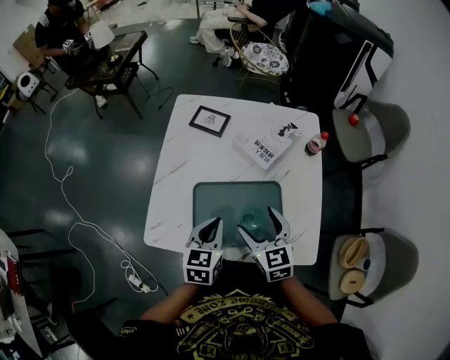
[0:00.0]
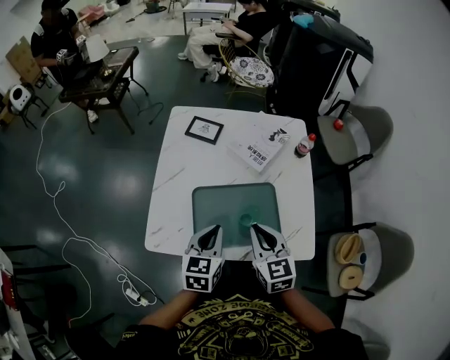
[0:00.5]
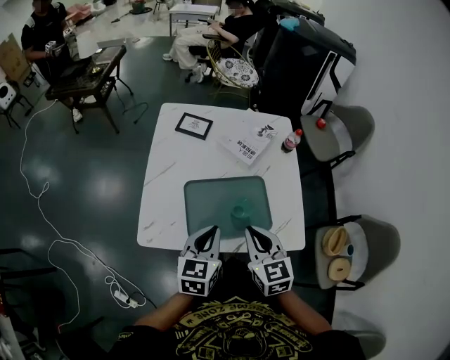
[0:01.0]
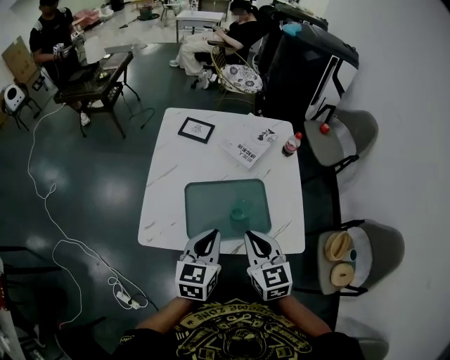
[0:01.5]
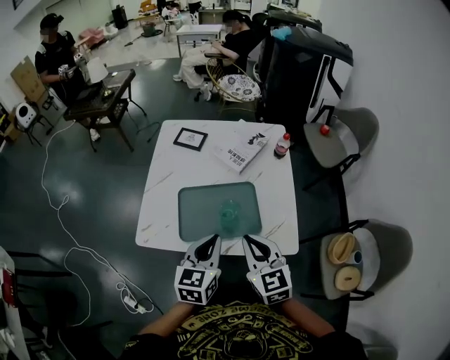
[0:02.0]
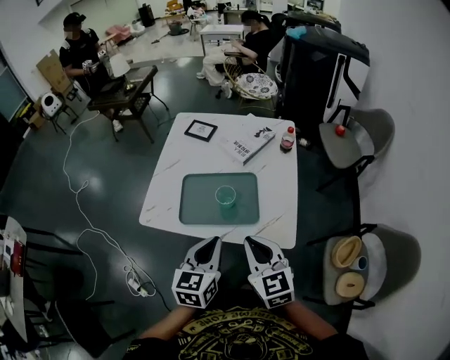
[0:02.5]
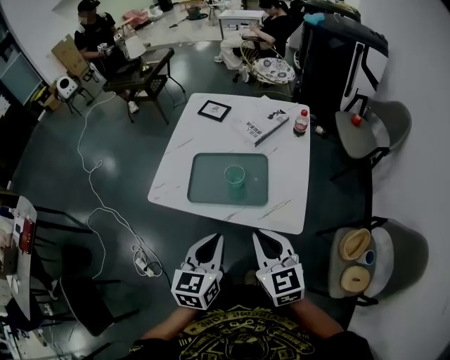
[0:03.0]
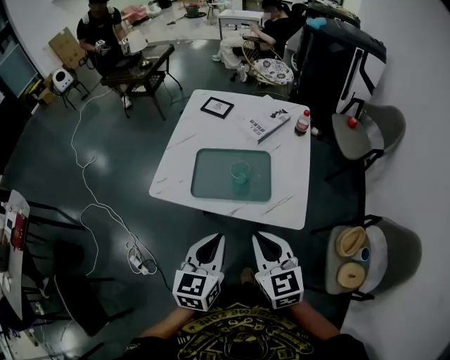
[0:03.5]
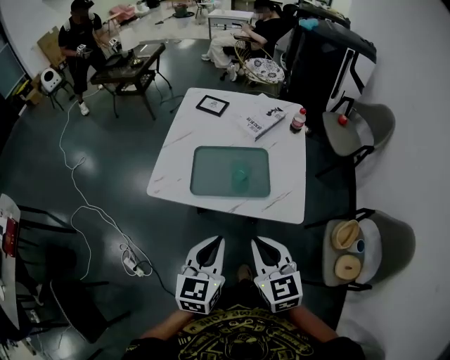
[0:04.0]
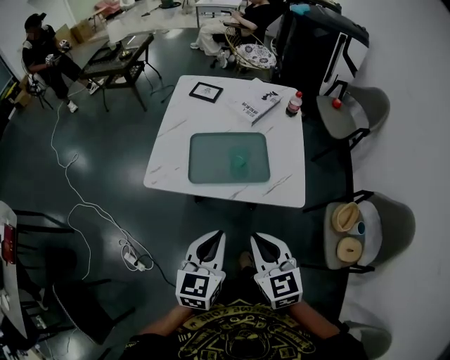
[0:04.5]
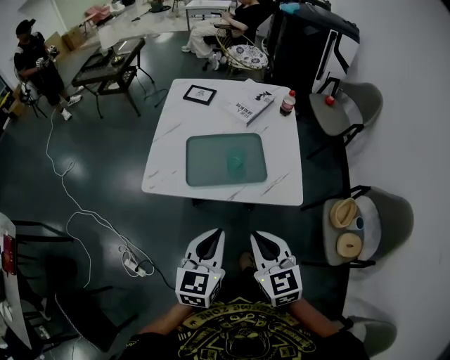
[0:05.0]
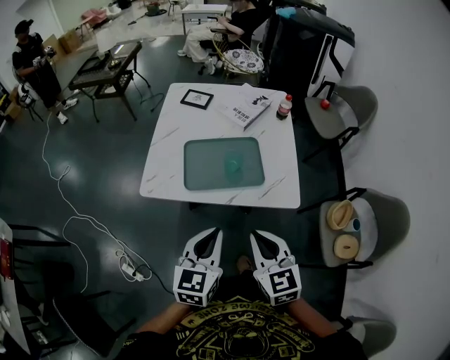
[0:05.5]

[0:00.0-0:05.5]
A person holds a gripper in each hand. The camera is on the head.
0:00.0 to 0:02.0: The left gripper moves backward, upward and to the right, some 15 cm. Meanwhile the right gripper moves backward and upward, roughly 15 cm, and closes up.
0:02.0 to 0:03.5: Both grippers move backward, some 15 cm.
0:03.5 to 0:05.5: The left gripper moves approximately 5 cm, while the right gripper ends up roughly 5 cm from where it was.

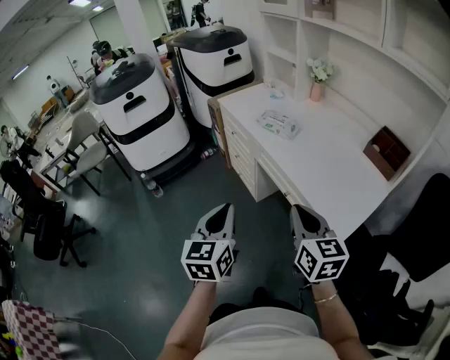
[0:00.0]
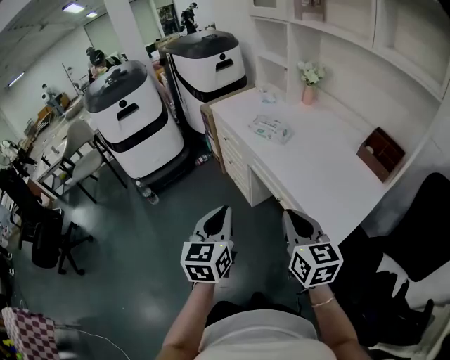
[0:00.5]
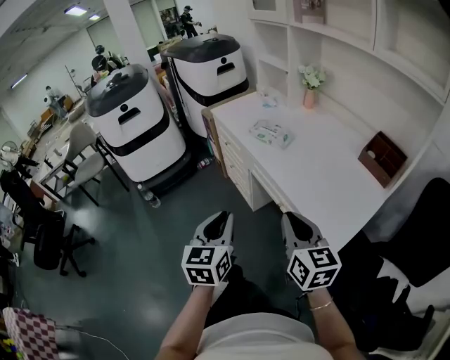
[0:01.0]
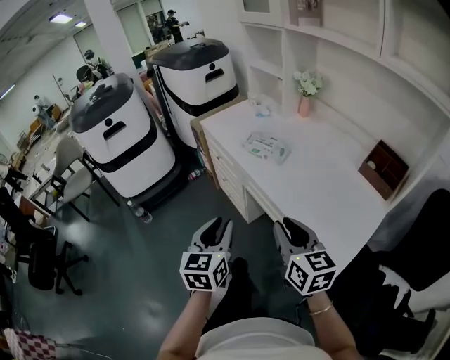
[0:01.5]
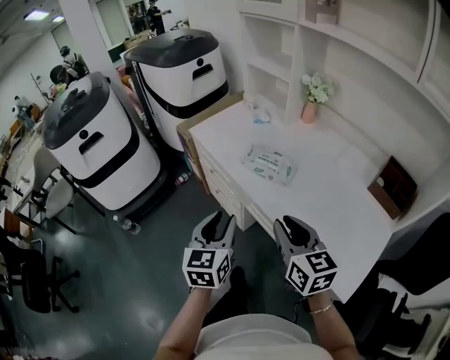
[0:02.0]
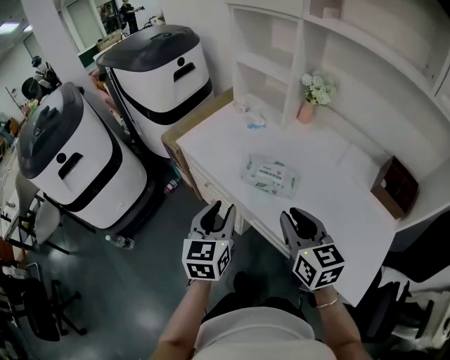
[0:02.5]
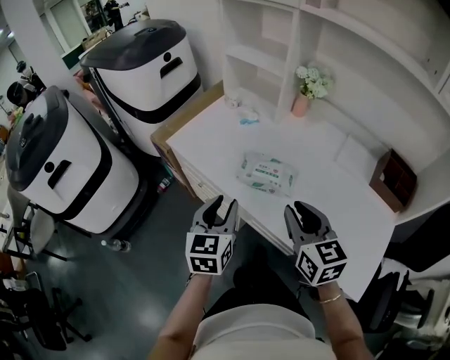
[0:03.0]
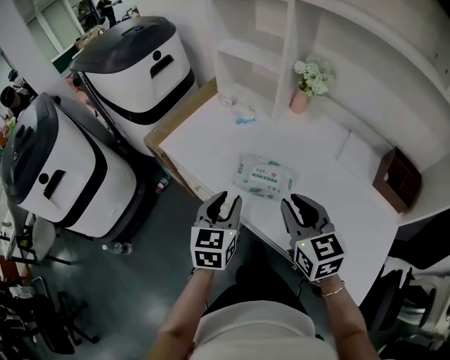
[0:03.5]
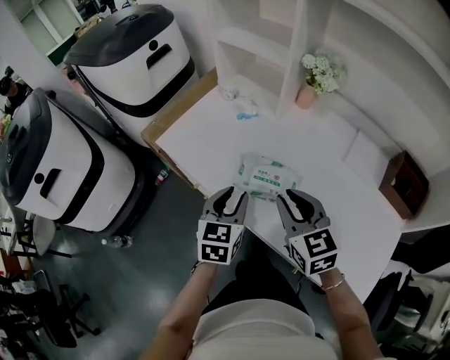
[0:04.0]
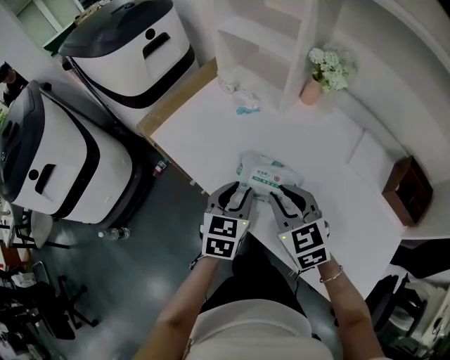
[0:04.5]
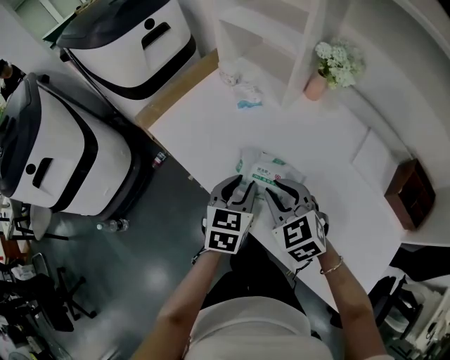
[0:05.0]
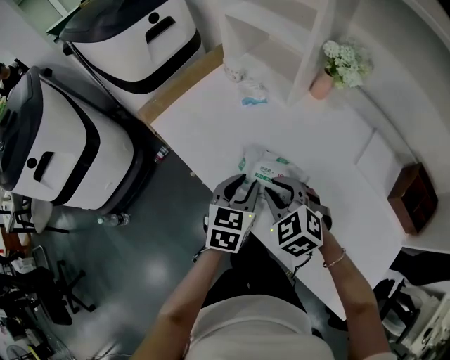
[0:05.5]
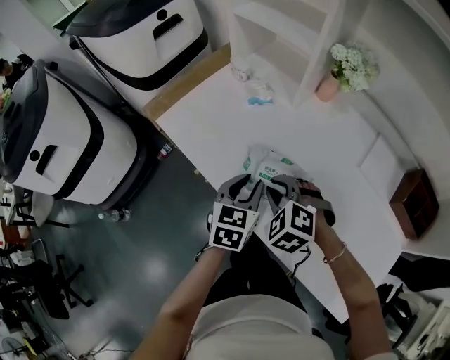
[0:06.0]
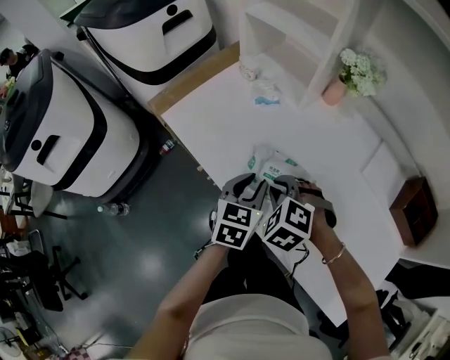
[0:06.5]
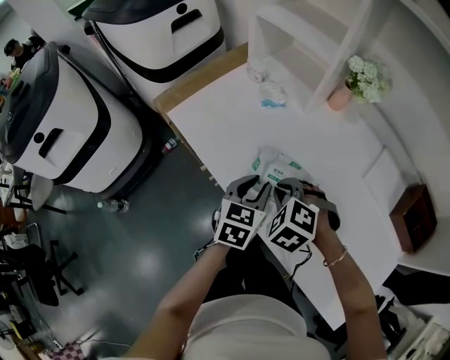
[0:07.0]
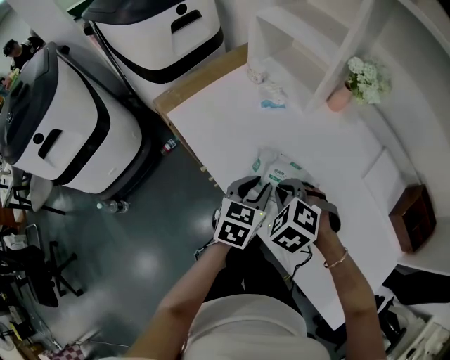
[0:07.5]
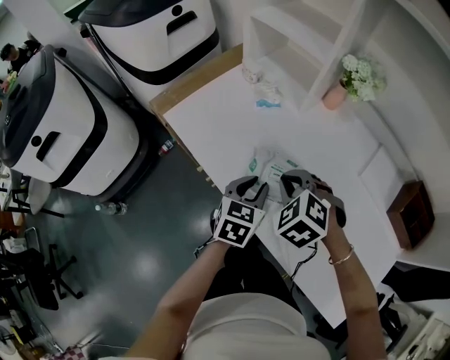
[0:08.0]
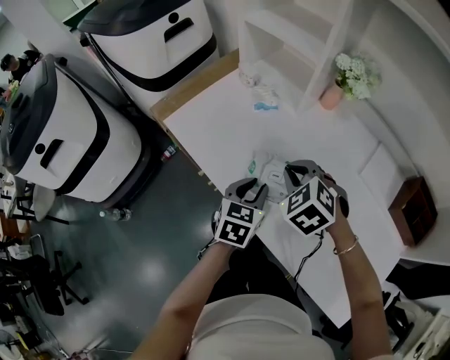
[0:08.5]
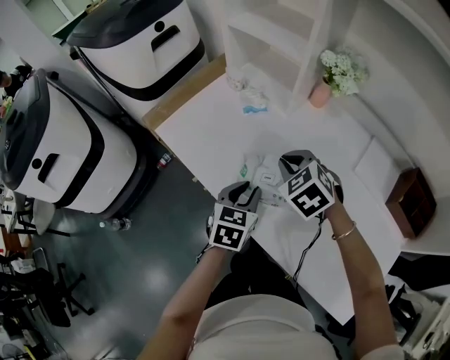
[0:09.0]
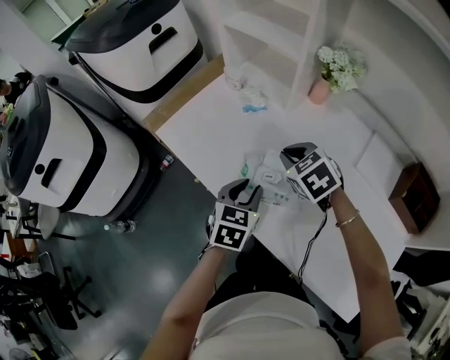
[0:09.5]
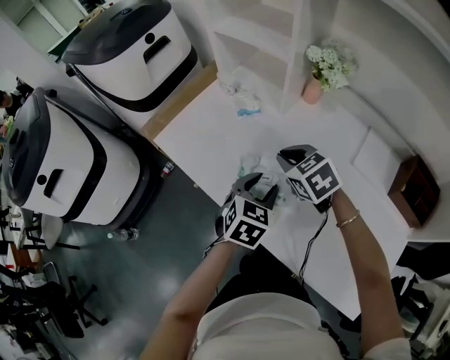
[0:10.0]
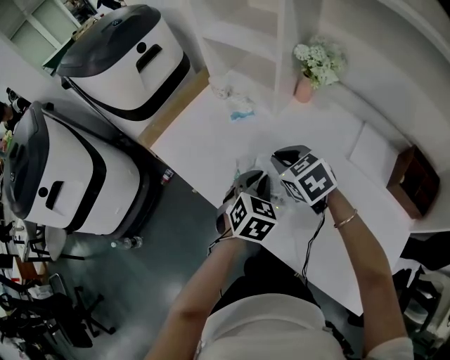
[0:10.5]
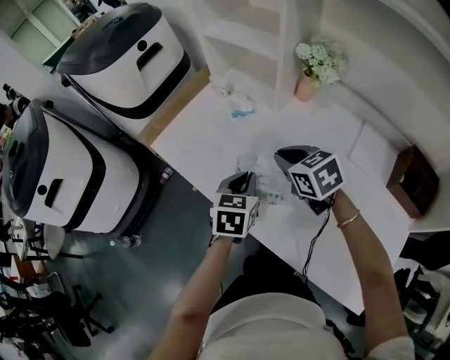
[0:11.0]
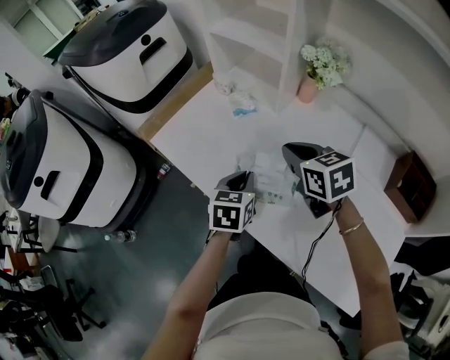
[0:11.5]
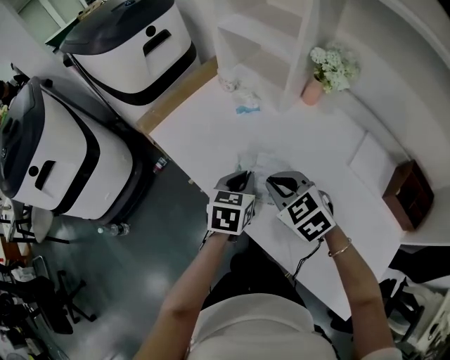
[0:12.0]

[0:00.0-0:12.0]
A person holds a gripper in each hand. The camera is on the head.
0:00.0 to 0:02.0: Both grippers move forward, approximately 25 cm. The left gripper opens up.
0:02.0 to 0:04.0: The grippers both shift forward by about 20 cm.
0:04.0 to 0:06.0: The right gripper shifts about 10 cm downward, and rotates around the line of its fingers by about 40 degrees, counterclockwise from behind. The left gripper changes place by some 5 cm.
0:06.0 to 0:08.0: The grippers make only small movements.
0:08.0 to 0:10.0: The left gripper moves to the right, some 5 cm, while the right gripper is displaced forward by about 5 cm, and turns by some 30 degrees.
0:10.0 to 0:12.0: The right gripper goes about 5 cm backward; the left gripper ends up approximately 5 cm from where it was, swivels some 20 degrees, and closes.

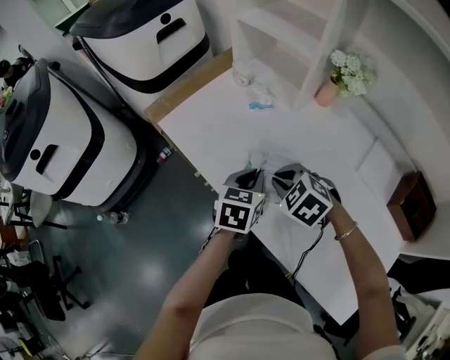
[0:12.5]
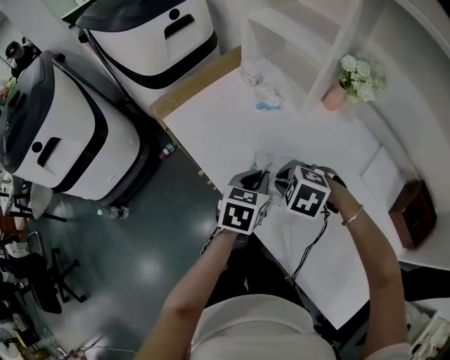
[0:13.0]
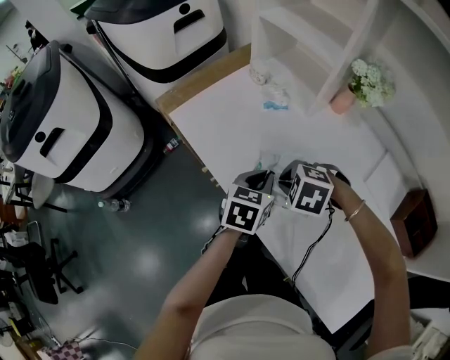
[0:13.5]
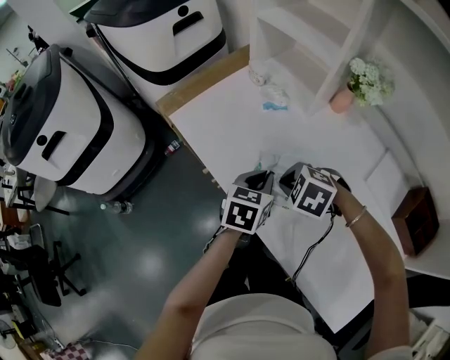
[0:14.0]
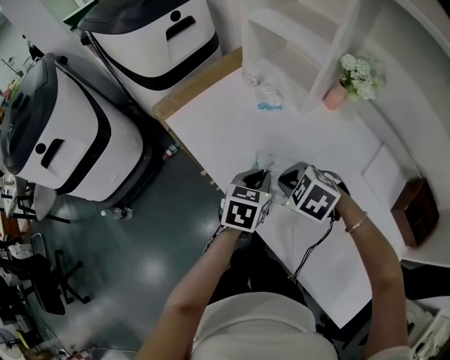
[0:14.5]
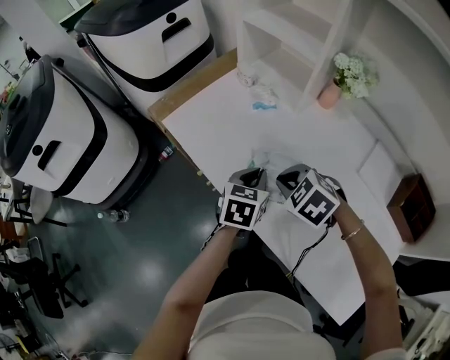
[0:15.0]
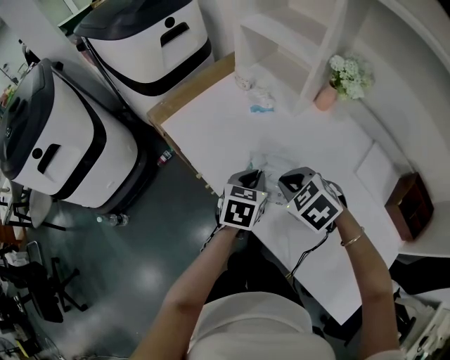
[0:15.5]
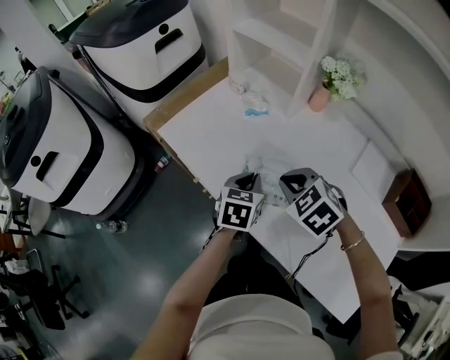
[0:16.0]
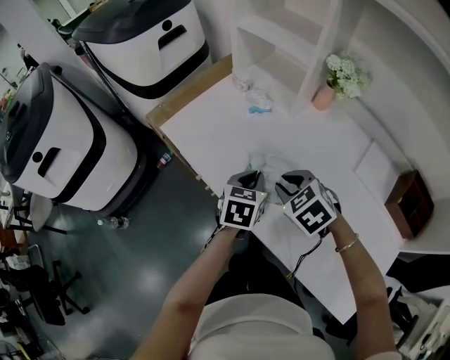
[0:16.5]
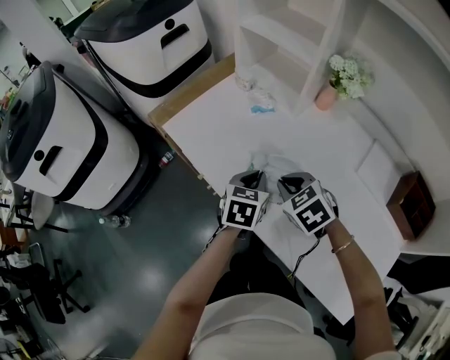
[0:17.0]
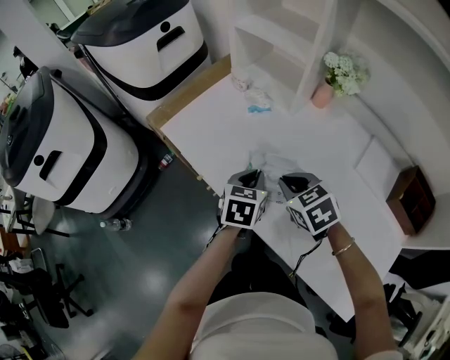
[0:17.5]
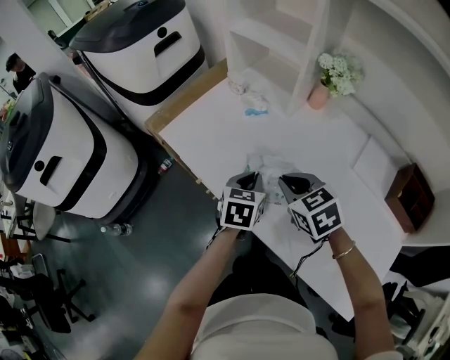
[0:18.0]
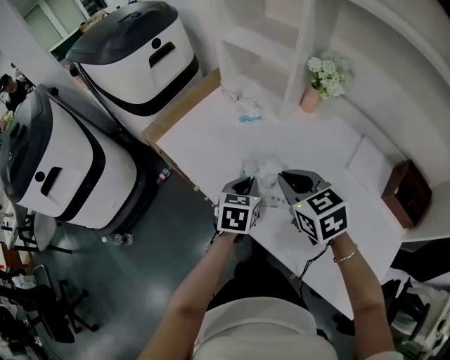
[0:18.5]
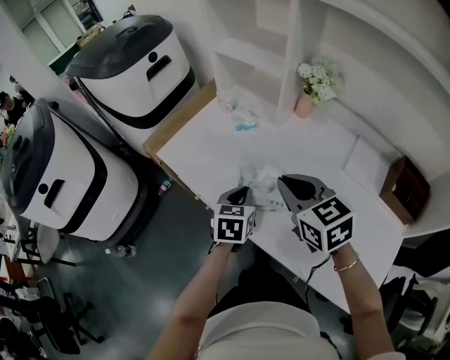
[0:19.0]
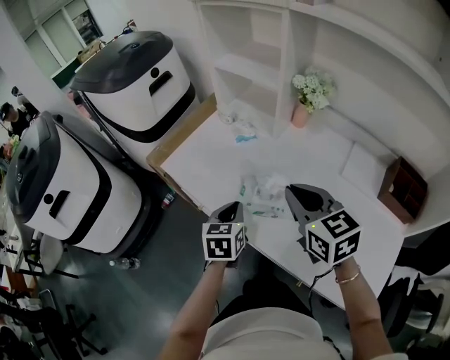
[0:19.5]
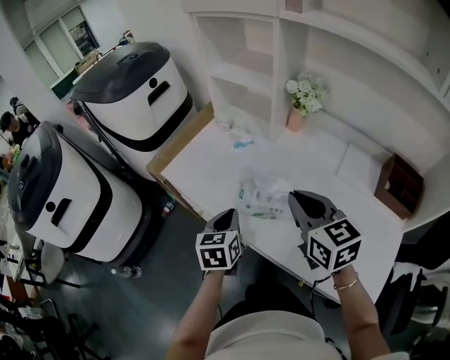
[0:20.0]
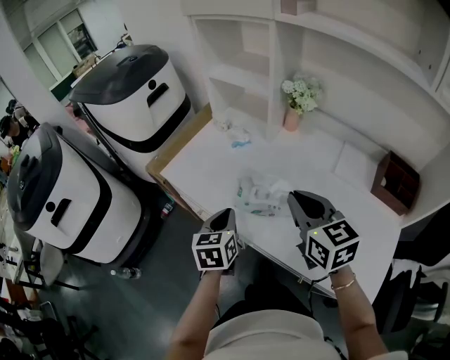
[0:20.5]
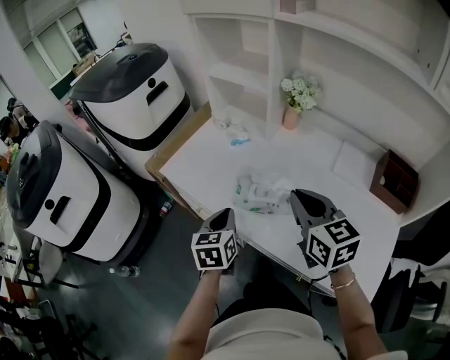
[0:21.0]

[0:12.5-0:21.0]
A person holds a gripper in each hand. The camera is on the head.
0:14.5 to 0:16.5: The right gripper rotates about 20 degrees.
0:16.5 to 0:19.0: The right gripper heads upward, covering roughly 10 cm, and changes its angle by approximately 40 degrees.
0:19.0 to 0:21.0: The right gripper is displaced backward by some 5 cm. Meanwhile the left gripper is displaced backward and to the left by some 10 cm.

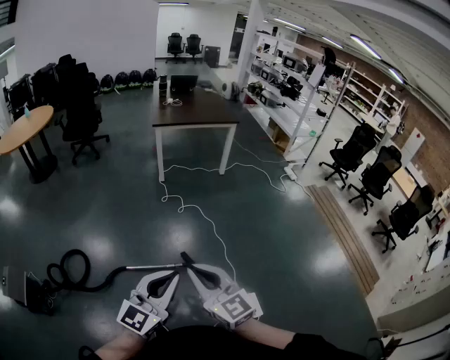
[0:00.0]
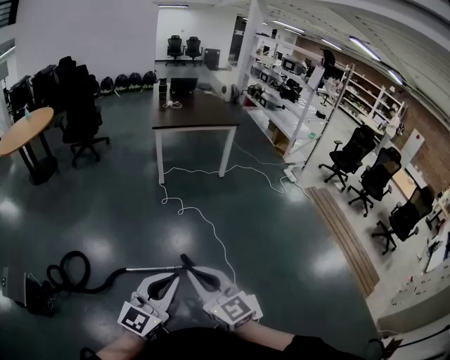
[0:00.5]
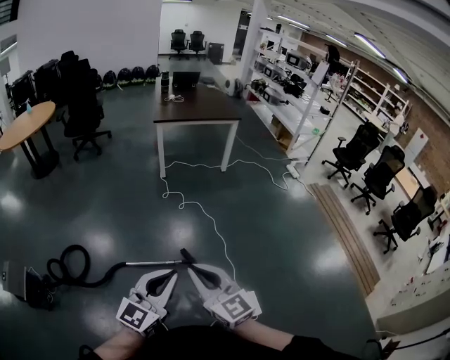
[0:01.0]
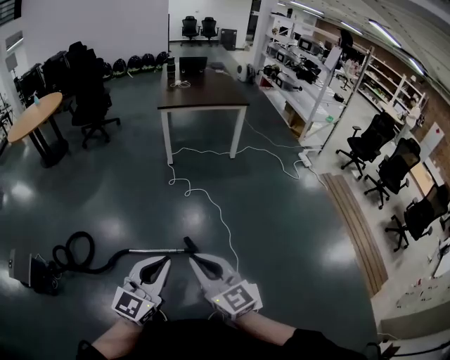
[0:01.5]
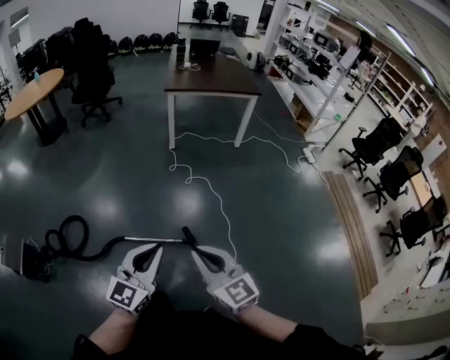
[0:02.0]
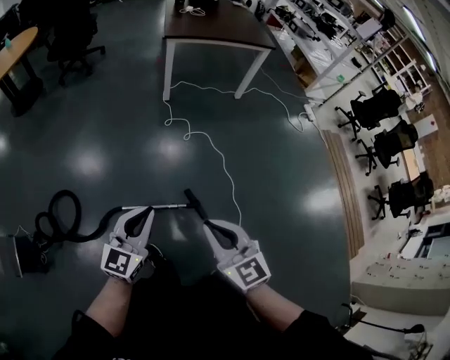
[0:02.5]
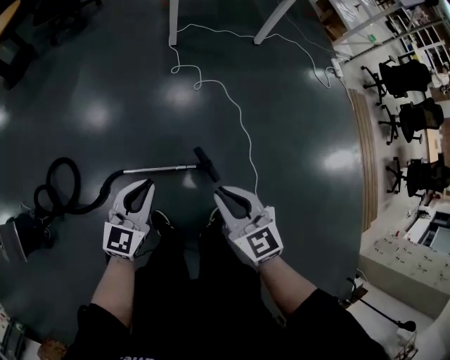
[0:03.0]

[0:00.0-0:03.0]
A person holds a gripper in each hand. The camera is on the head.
0:00.0 to 0:01.5: The left gripper ends up some 5 cm from where it was. Meanwhile the right gripper shifts about 5 cm to the right.
0:01.5 to 0:03.0: The grippers both shift downward, forward and to the left by some 35 cm. The right gripper rotates roughly 30 degrees.
